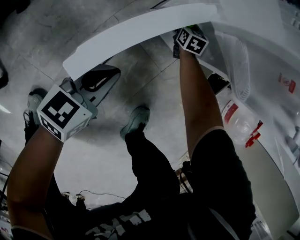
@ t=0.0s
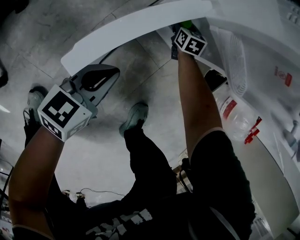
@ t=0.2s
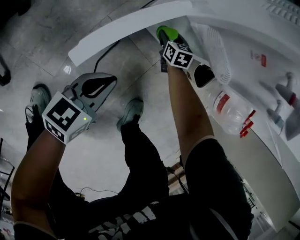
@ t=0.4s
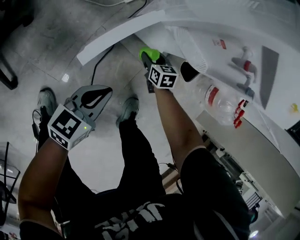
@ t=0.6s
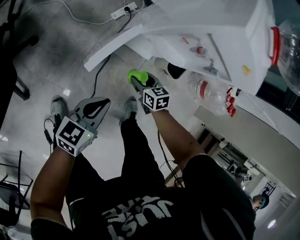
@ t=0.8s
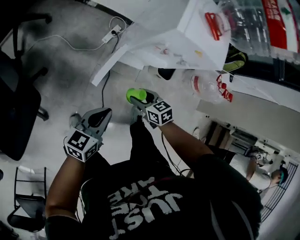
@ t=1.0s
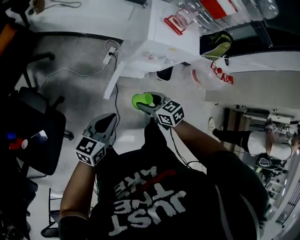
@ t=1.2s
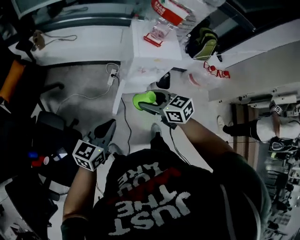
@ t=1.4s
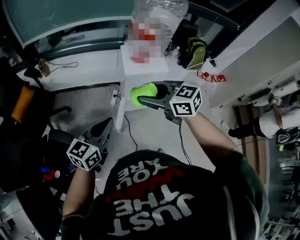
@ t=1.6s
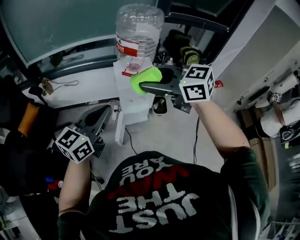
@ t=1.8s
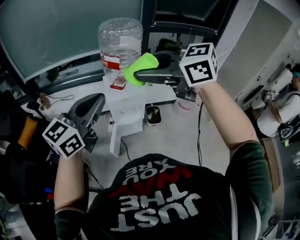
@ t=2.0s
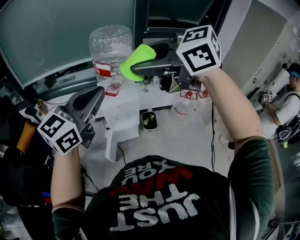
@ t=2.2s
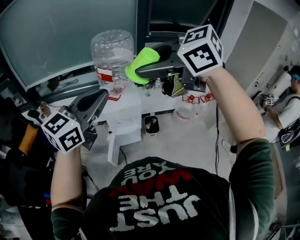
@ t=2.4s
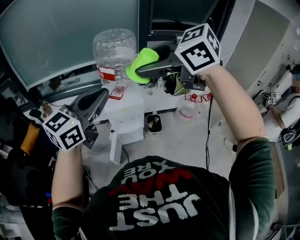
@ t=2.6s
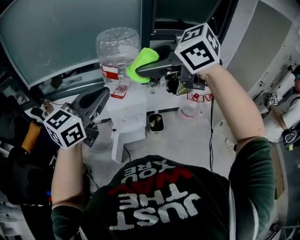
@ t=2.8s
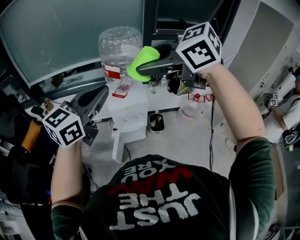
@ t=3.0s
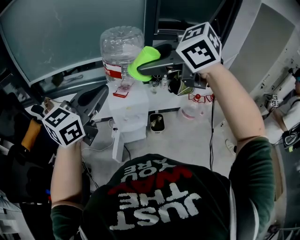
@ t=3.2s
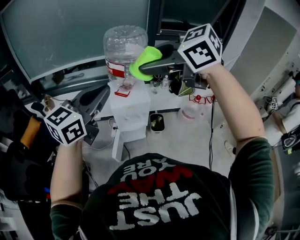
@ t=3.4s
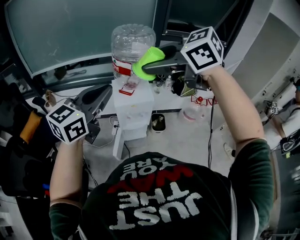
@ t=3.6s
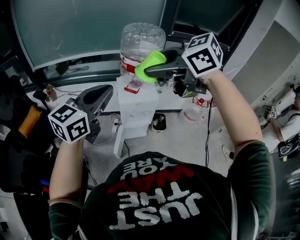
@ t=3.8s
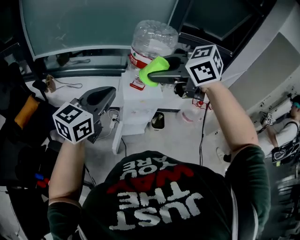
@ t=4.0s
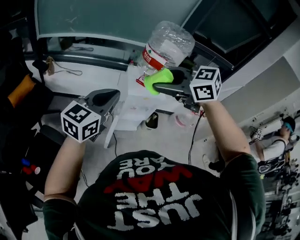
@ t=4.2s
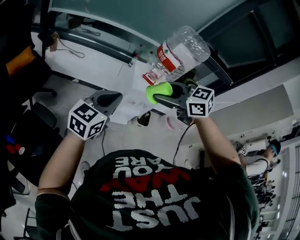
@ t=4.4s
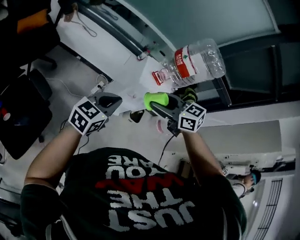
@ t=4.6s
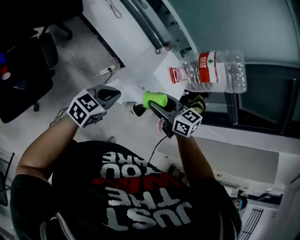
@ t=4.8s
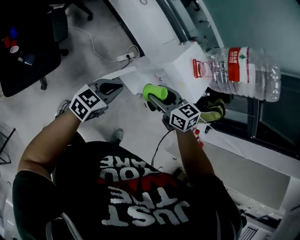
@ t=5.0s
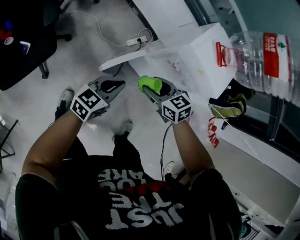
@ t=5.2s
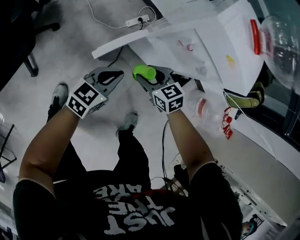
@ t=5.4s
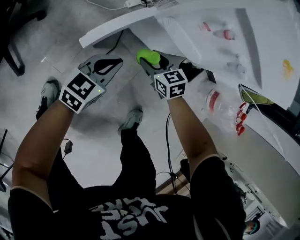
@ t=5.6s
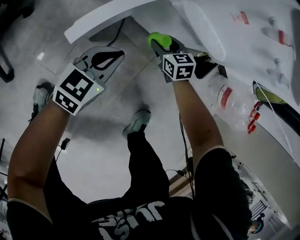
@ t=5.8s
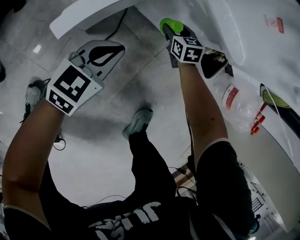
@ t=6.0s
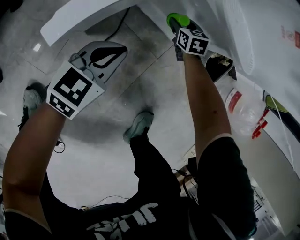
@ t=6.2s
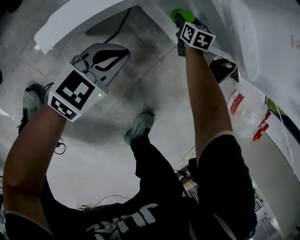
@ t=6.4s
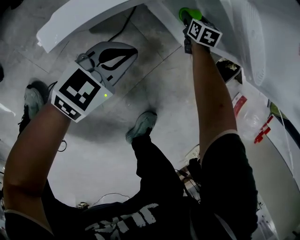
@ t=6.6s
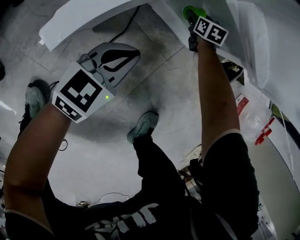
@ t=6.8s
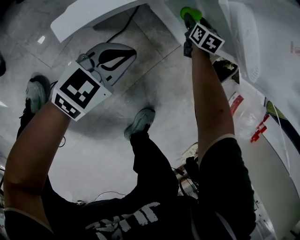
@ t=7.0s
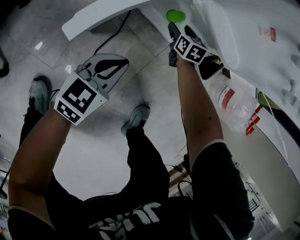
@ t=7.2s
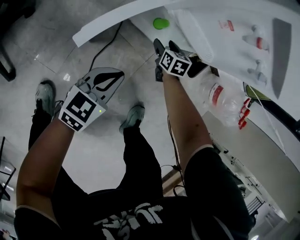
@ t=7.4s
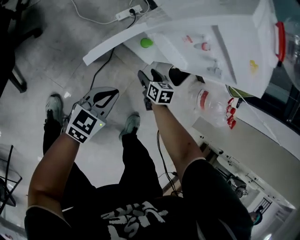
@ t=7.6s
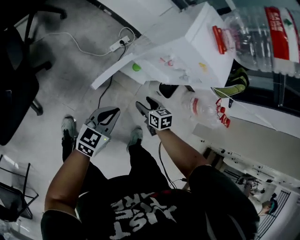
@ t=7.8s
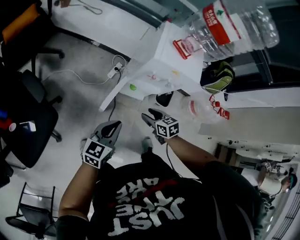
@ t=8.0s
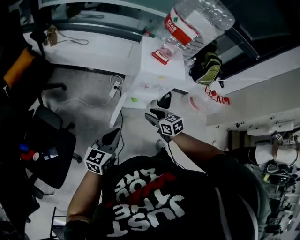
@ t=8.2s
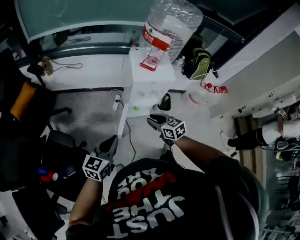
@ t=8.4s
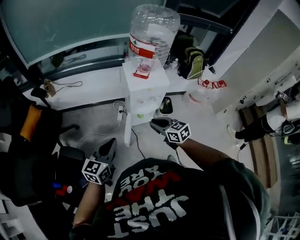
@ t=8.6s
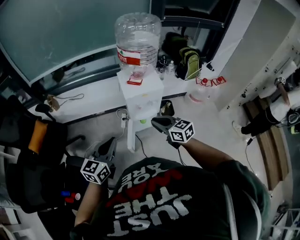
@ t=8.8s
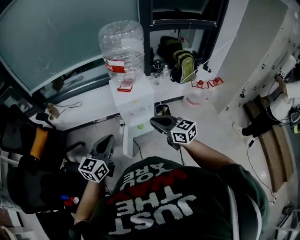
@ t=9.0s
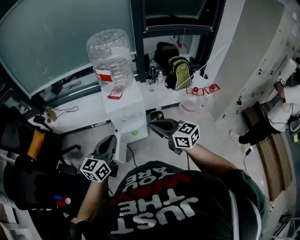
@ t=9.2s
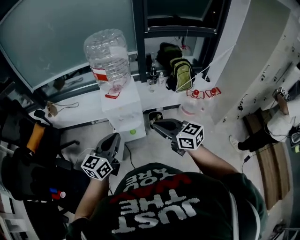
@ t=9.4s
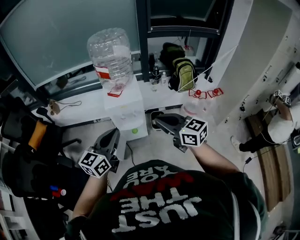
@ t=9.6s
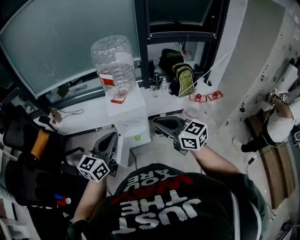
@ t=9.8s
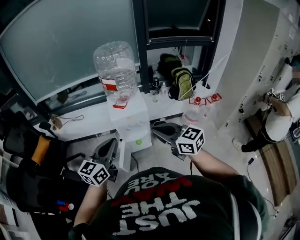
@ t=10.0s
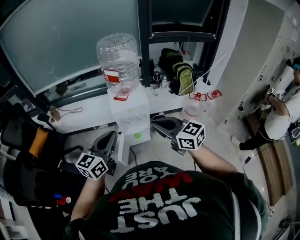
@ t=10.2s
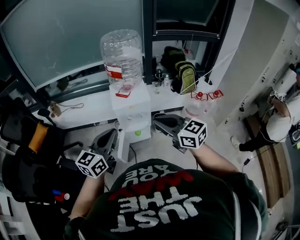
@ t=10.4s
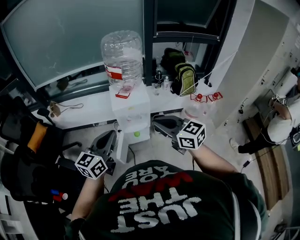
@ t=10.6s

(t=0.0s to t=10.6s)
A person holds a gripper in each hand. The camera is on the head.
t=0.0s - t=1.6s: The two grippers go approximately 90 cm upward. The right gripper changes its angle by about 40 degrees, while the left gripper changes its angle by approximately 30 degrees.
t=1.6s - t=3.0s: The two grippers go approximately 35 cm upward and to the right.
t=3.0s - t=4.6s: The grippers both shift downward and to the left by roughly 35 cm. The left gripper rotates roughly 20 degrees.
t=4.6s - t=6.0s: The grippers both shift downward by approximately 80 cm. The left gripper turns by some 20 degrees, while the right gripper changes its angle by about 20 degrees.
t=6.0s - t=7.6s: The right gripper goes some 25 cm upward and backward; the left gripper moves upward, approximately 20 cm.
t=7.6s - t=9.0s: Both grippers travel together upward, approximately 60 cm. The right gripper tips its fingers upward by some 50 degrees, and closes its fingers. The left gripper turns by approximately 30 degrees.
t=9.0s - t=10.6s: The left gripper shifts approximately 10 cm to the right and upward; the right gripper is displaced upward and to the right by roughly 10 cm.

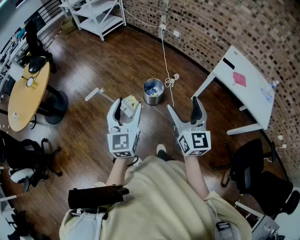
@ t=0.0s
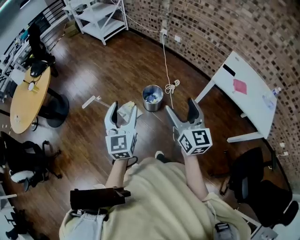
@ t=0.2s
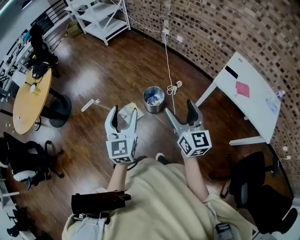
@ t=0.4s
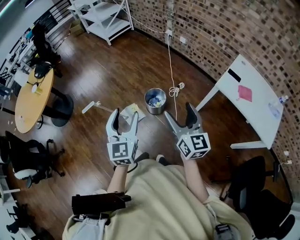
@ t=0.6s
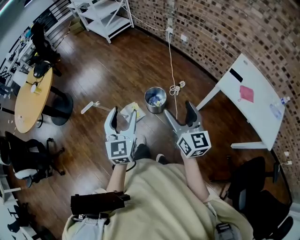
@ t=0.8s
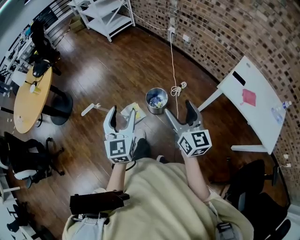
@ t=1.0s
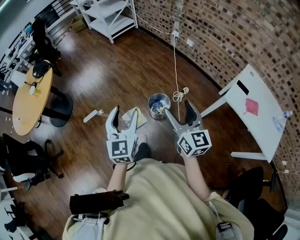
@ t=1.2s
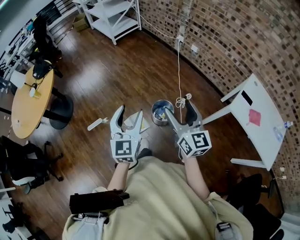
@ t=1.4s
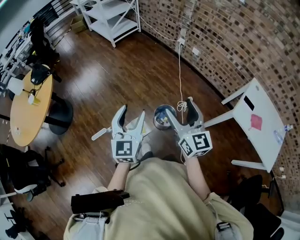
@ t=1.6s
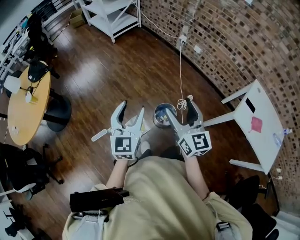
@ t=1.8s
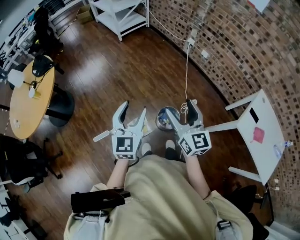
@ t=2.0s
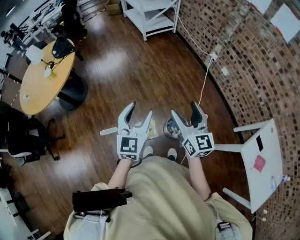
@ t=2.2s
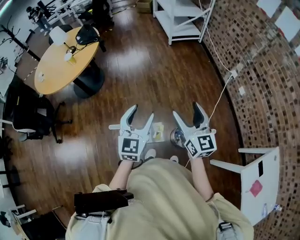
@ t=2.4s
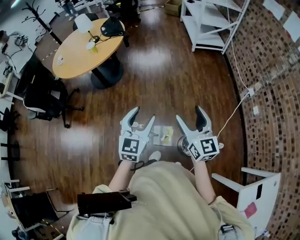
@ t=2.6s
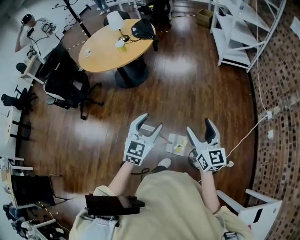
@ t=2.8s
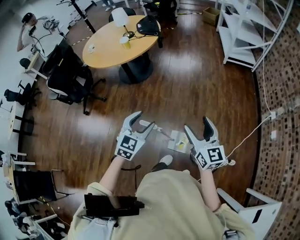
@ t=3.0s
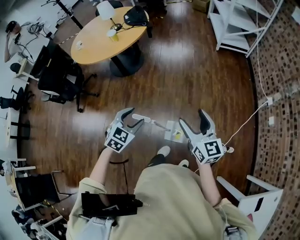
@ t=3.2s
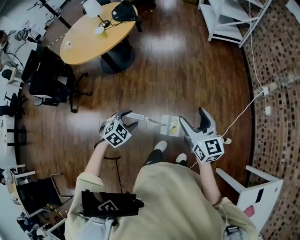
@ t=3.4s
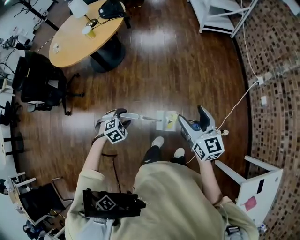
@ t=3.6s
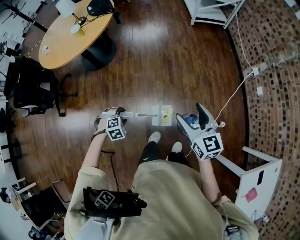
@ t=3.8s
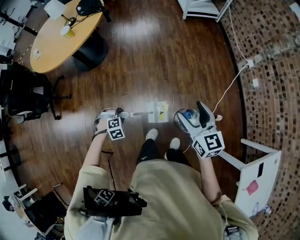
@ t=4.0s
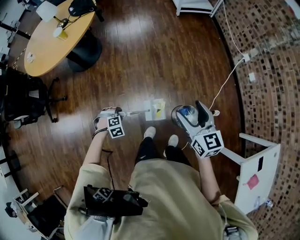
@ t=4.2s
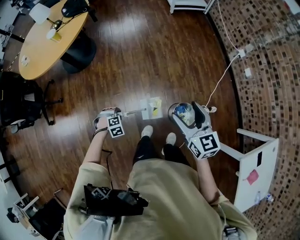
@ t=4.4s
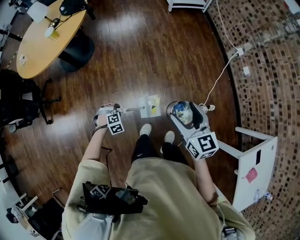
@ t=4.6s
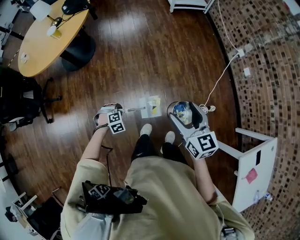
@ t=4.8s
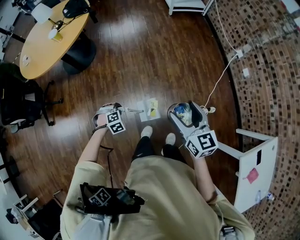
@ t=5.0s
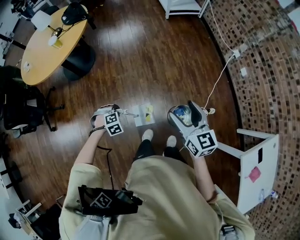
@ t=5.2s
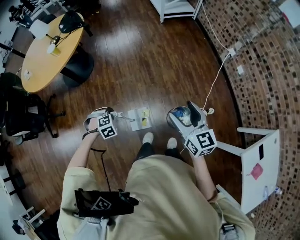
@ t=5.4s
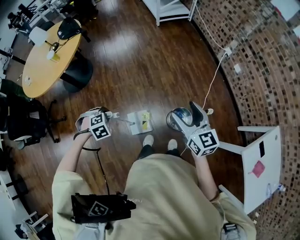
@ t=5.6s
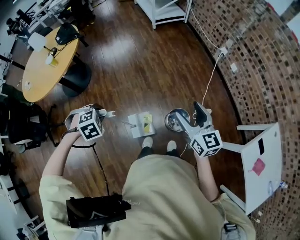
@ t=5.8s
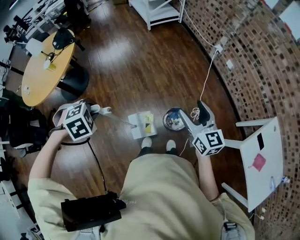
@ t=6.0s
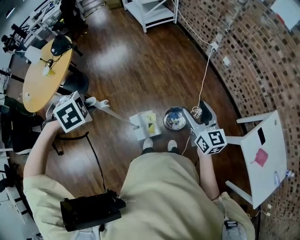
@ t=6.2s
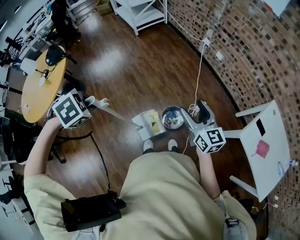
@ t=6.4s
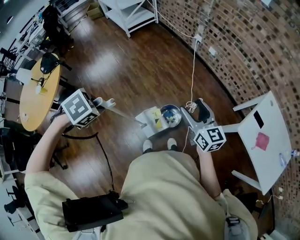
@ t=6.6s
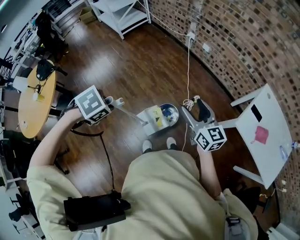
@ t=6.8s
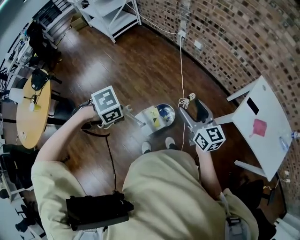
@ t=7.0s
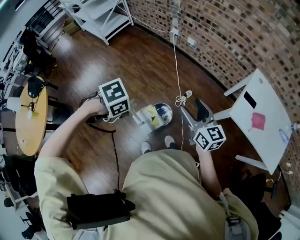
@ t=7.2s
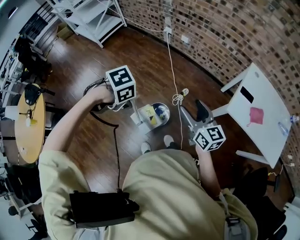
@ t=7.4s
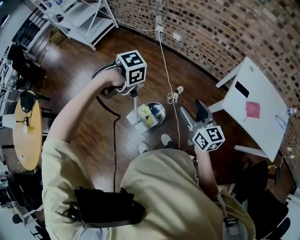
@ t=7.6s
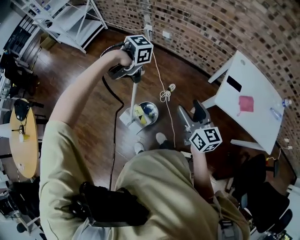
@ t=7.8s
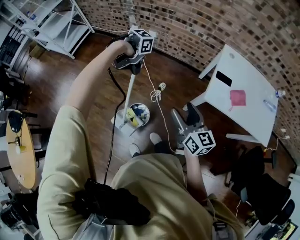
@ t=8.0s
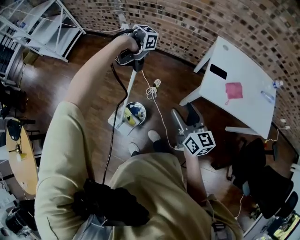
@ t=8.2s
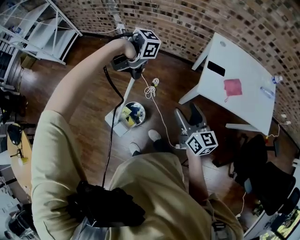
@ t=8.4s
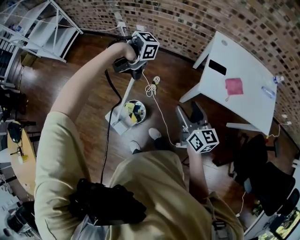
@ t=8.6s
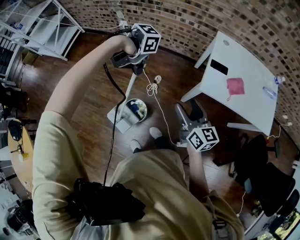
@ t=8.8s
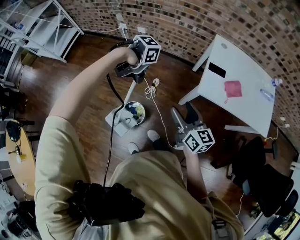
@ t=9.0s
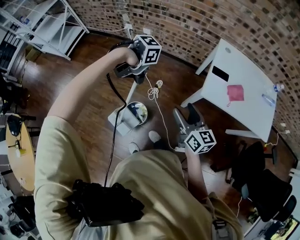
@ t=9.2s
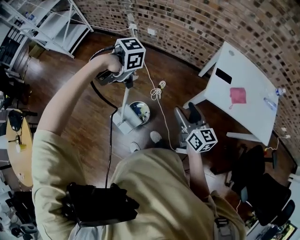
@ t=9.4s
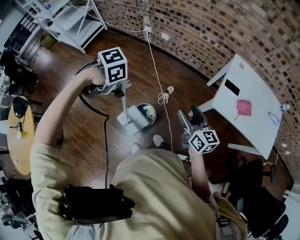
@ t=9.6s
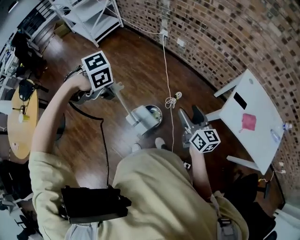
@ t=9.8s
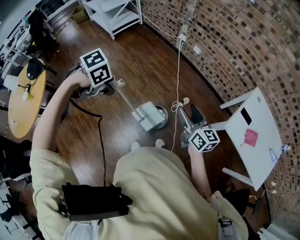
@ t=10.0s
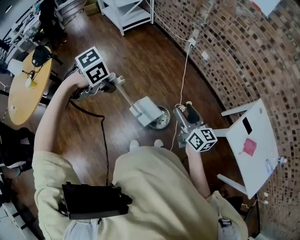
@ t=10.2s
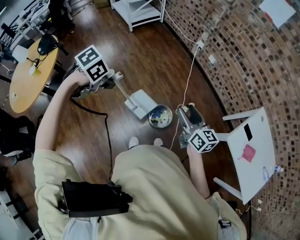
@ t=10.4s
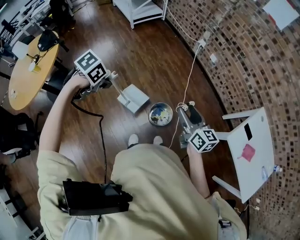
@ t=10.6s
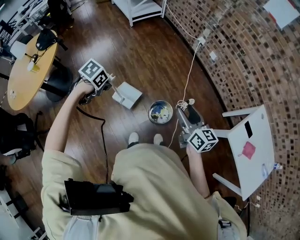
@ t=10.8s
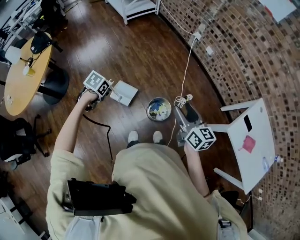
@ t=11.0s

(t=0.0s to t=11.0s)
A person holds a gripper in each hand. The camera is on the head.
t=0.0s - t=1.6s: The grippers both shift forward by roughly 30 cm.
t=1.6s - t=3.2s: The left gripper changes place by about 25 cm, and tilts its fingers some 30 degrees downward, while the right gripper moves roughly 25 cm, and swivels approximately 50 degrees.
t=3.2s - t=4.8s: The left gripper moves downward, about 30 cm, tilts its fingers roughly 40 degrees downward, and closes up. The right gripper changes place by about 10 cm.
t=4.8s - t=6.2s: The left gripper moves upward, approximately 40 cm. Meanwhile the right gripper moves about 20 cm, and swivels about 20 degrees.
t=6.2s - t=7.8s: The left gripper shifts by roughly 50 cm, and rotates some 40 degrees, while the right gripper changes place by some 25 cm, and turns by roughly 30 degrees.
t=7.8s - t=9.4s: The right gripper shifts by about 10 cm.
t=9.4s - t=11.0s: The right gripper shifts by about 25 cm, and swivels roughly 30 degrees. Meanwhile the left gripper moves about 40 cm, and swivels about 60 degrees.

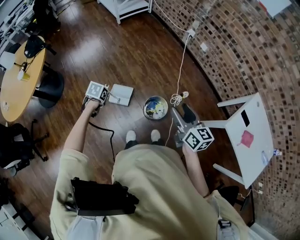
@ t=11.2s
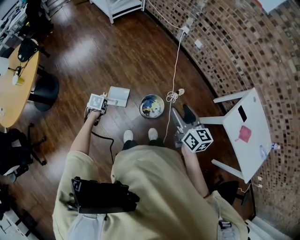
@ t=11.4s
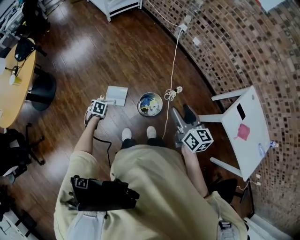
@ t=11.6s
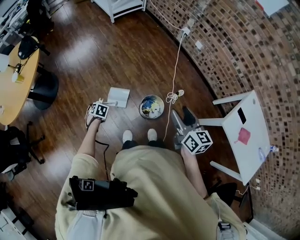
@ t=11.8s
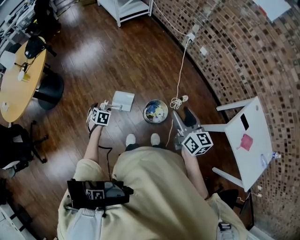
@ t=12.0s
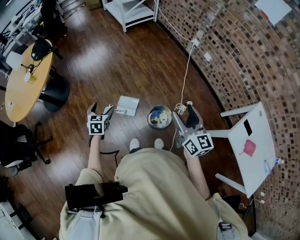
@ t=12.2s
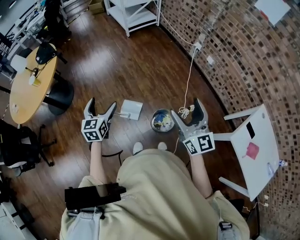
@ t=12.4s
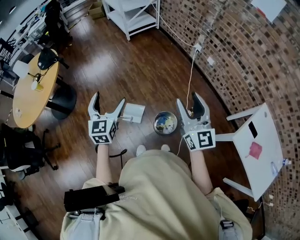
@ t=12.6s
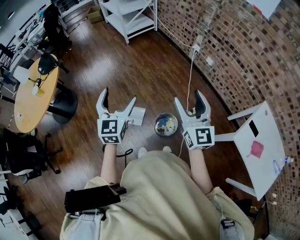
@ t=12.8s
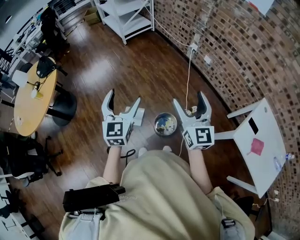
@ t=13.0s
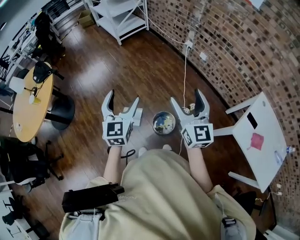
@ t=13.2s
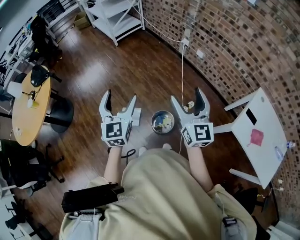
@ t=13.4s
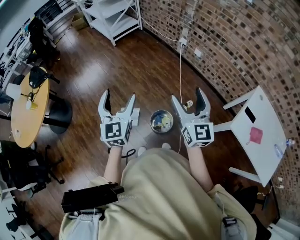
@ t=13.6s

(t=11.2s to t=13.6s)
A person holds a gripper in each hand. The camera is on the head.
t=11.2s - t=12.4s: The left gripper shifts approximately 20 cm upward, tilts its fingers roughly 50 degrees upward, and opens up. The right gripper travels upward by roughly 10 cm, and changes its angle by some 30 degrees.
t=12.4s - t=13.6s: The left gripper is displaced to the right and upward by about 20 cm, and rotates some 20 degrees; the right gripper moves to the right, about 5 cm.
